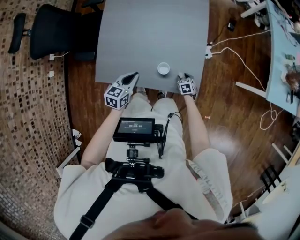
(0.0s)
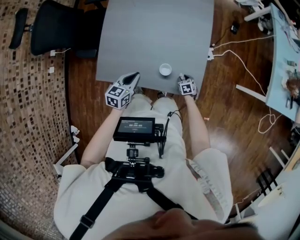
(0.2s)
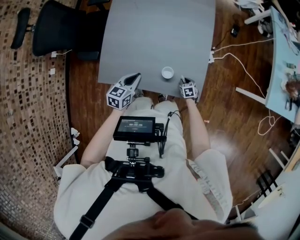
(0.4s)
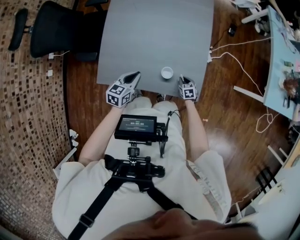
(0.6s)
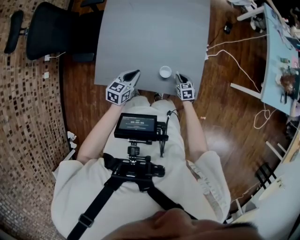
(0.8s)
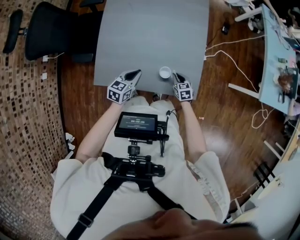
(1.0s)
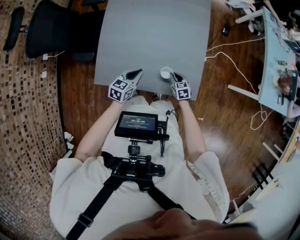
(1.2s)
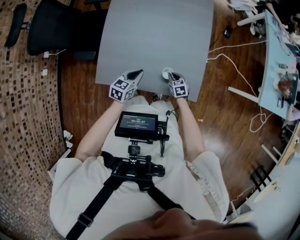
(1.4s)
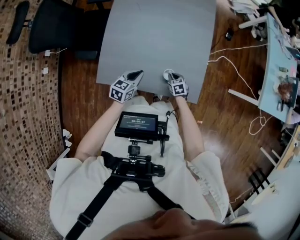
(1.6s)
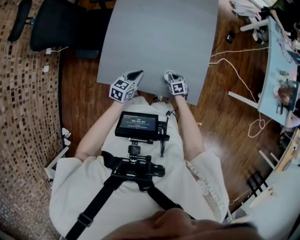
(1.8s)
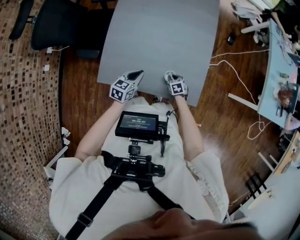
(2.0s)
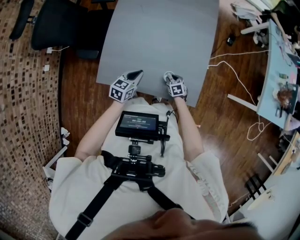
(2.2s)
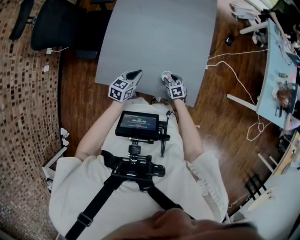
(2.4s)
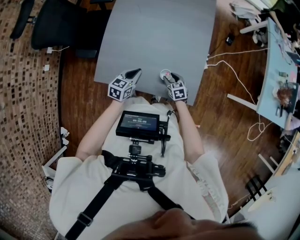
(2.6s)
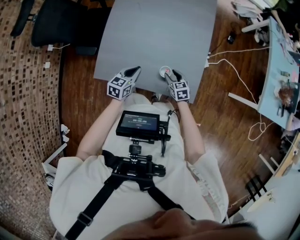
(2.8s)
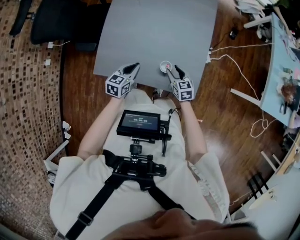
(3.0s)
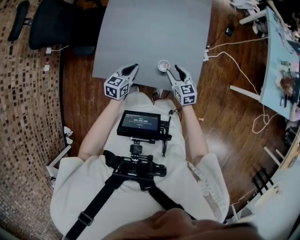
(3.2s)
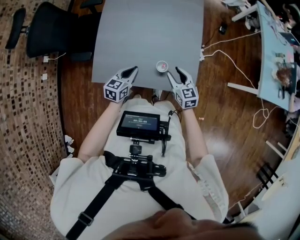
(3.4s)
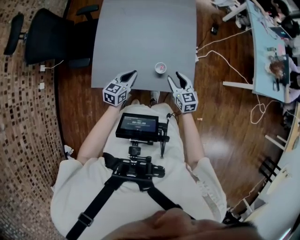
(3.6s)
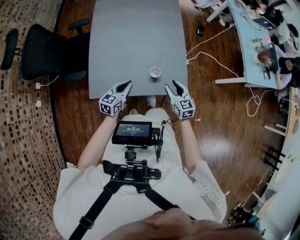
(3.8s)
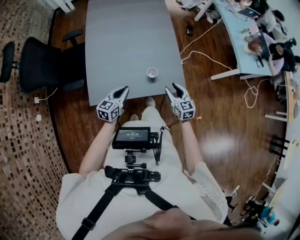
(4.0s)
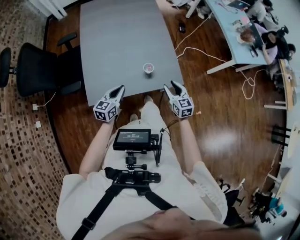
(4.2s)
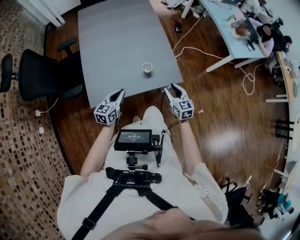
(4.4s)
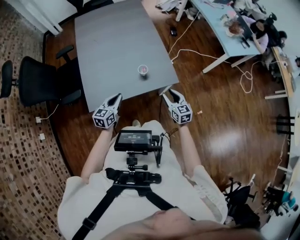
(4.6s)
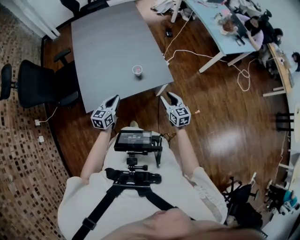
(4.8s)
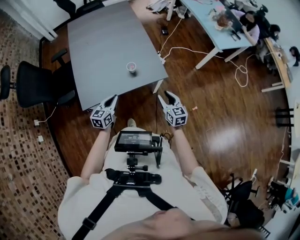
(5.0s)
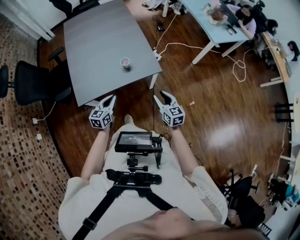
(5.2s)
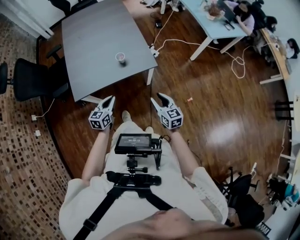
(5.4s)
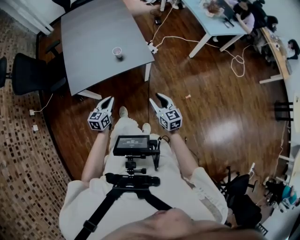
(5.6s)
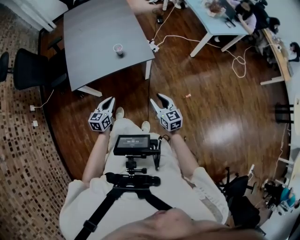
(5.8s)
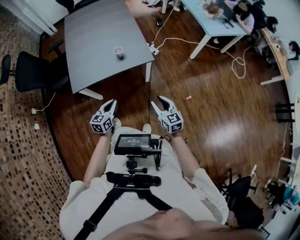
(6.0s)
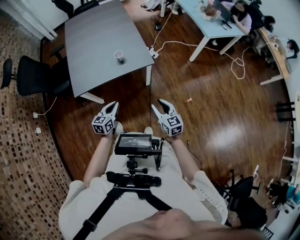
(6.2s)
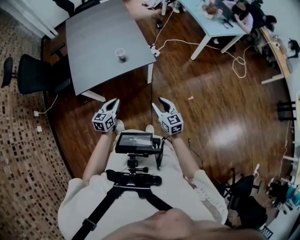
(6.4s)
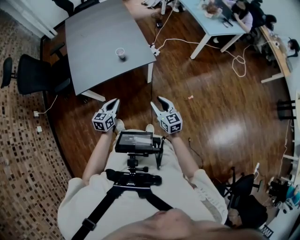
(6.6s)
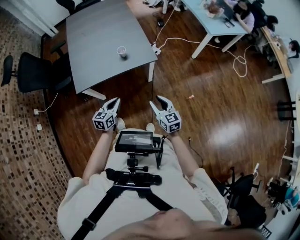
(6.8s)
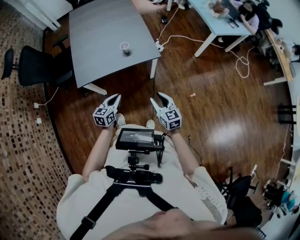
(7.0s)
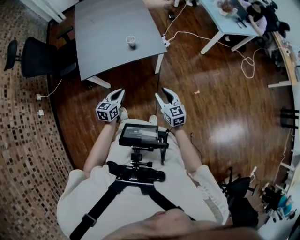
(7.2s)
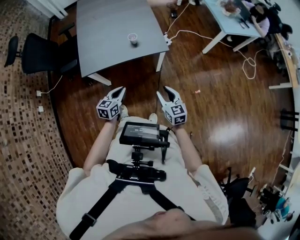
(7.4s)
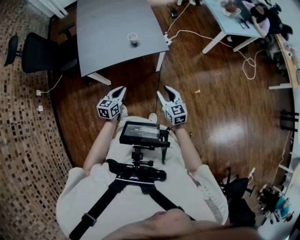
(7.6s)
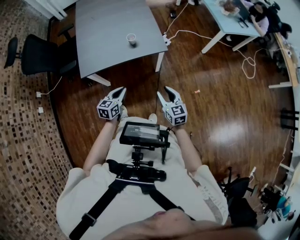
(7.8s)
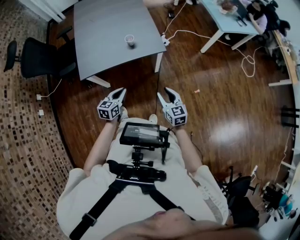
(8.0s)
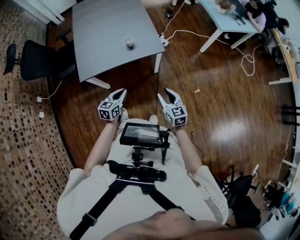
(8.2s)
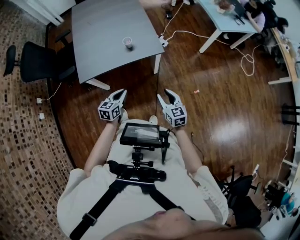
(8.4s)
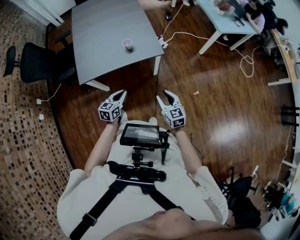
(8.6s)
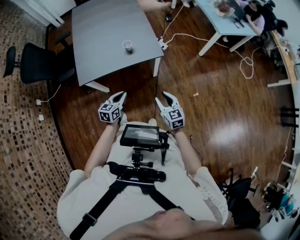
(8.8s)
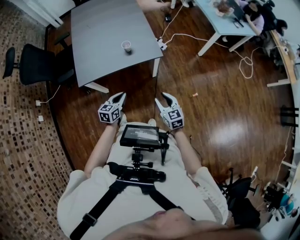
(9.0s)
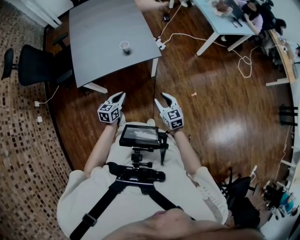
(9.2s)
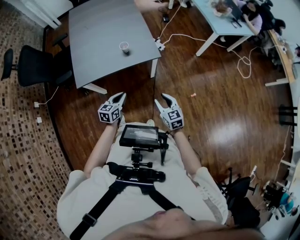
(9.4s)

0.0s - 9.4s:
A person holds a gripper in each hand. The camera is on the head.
0.0s - 1.6s: The right gripper travels to the left and upward by roughly 15 cm, and closes its fingers, while the left gripper moves approximately 5 cm.
1.6s - 3.2s: The right gripper shifts approximately 20 cm upward, changes its angle by roughly 30 degrees, and opens up.
3.2s - 4.8s: The left gripper travels backward by about 15 cm, and changes its angle by about 20 degrees. Meanwhile the right gripper goes roughly 25 cm backward and to the right, and rotates about 30 degrees.
4.8s - 6.2s: Both grippers travel together backward and to the right, some 25 cm.
6.2s - 9.4s: There are only small adjustments of the grippers.

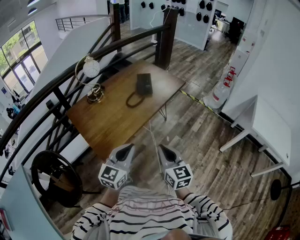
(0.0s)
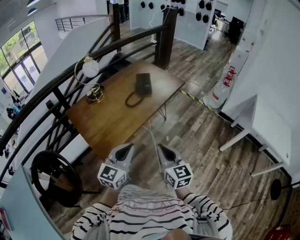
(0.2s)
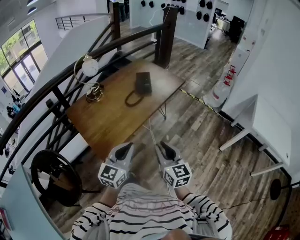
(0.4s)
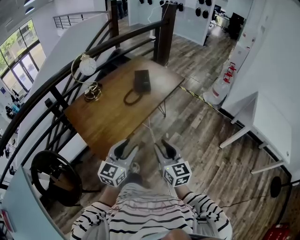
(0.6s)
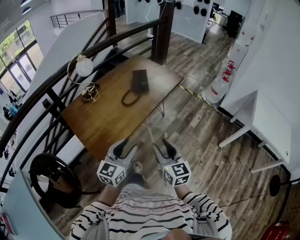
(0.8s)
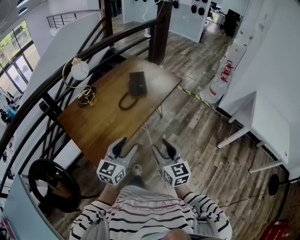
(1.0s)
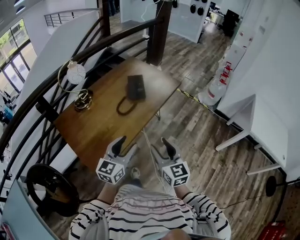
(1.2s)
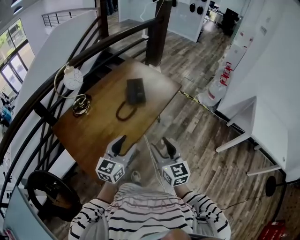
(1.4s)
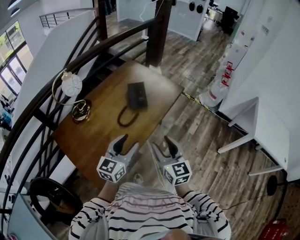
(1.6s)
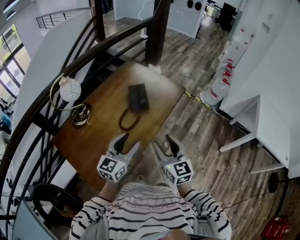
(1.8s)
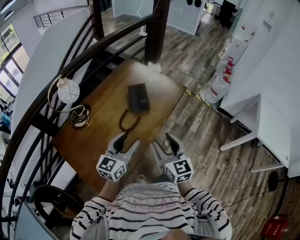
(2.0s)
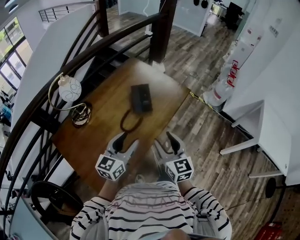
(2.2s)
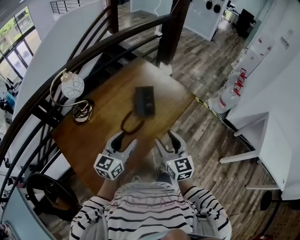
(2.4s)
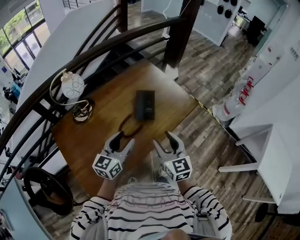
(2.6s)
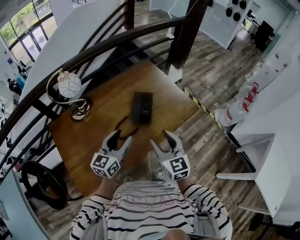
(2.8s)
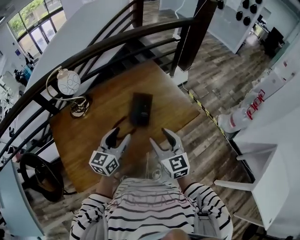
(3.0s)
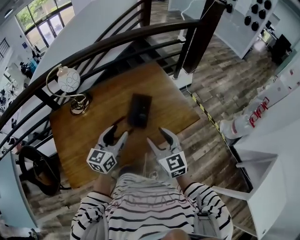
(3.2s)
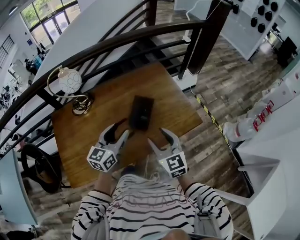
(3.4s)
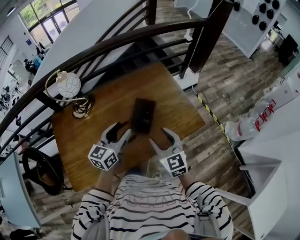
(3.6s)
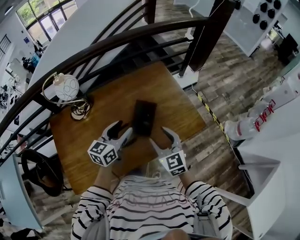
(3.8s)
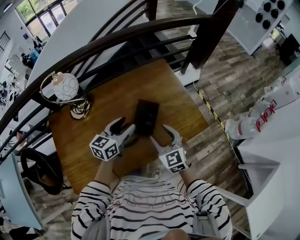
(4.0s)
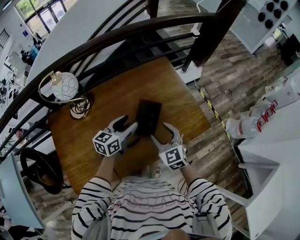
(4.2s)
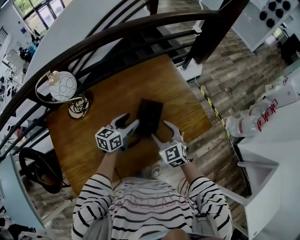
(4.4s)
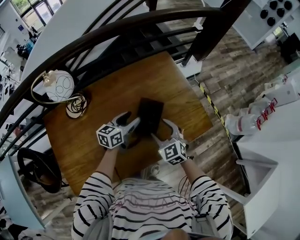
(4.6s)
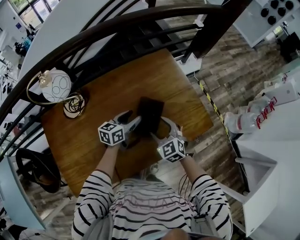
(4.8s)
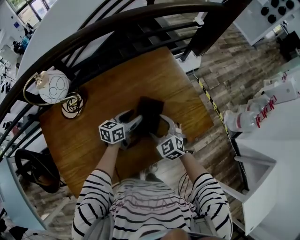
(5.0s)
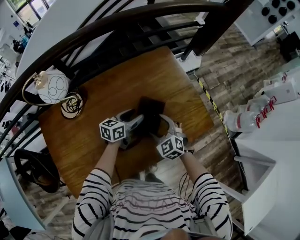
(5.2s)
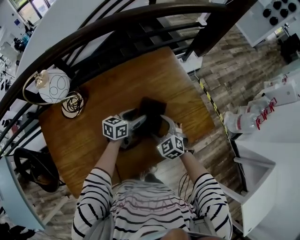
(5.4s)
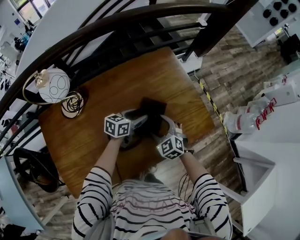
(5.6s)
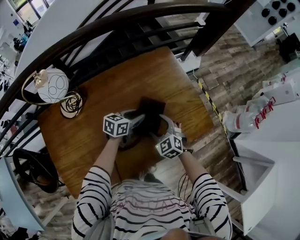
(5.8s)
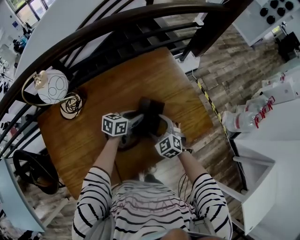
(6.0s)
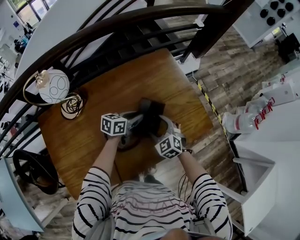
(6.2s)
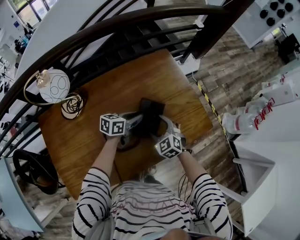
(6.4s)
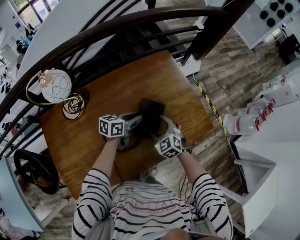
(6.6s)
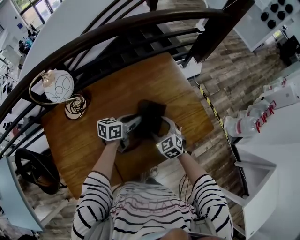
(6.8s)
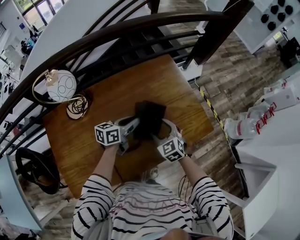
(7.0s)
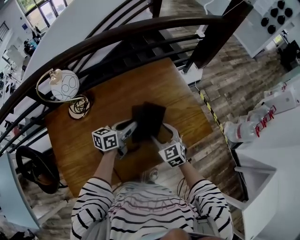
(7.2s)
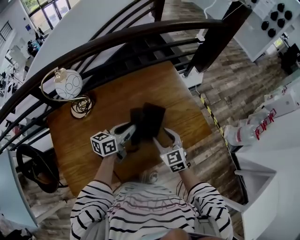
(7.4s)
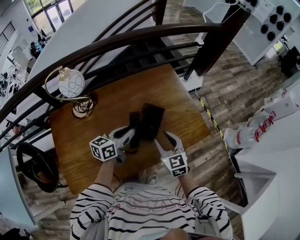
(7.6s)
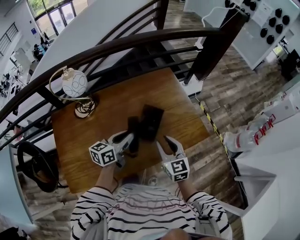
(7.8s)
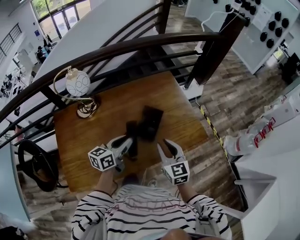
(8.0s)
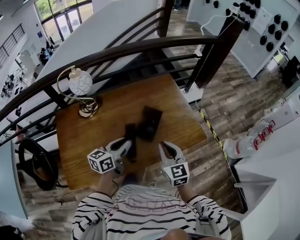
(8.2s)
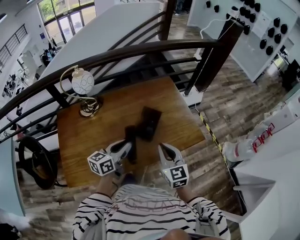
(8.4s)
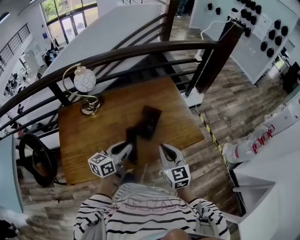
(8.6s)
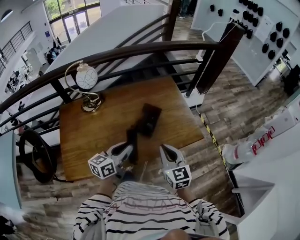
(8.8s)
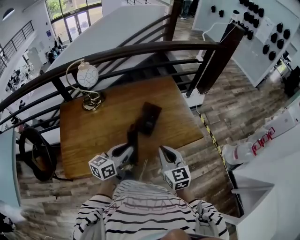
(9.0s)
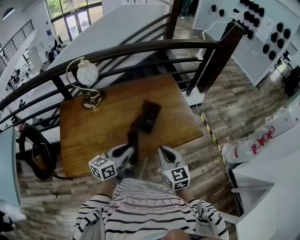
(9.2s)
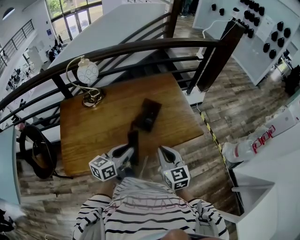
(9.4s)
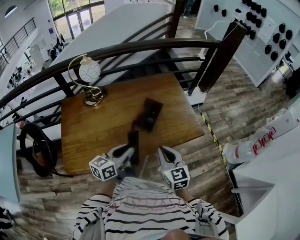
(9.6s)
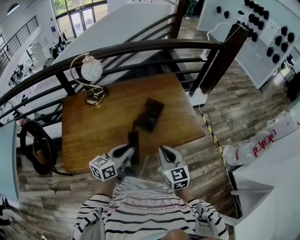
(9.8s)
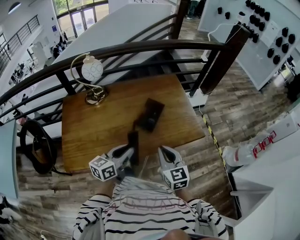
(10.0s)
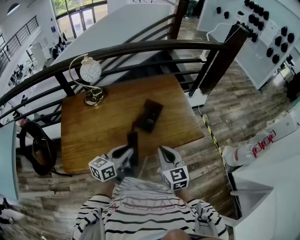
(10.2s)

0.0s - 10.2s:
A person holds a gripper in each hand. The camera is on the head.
0.0s - 1.4s: The grippers both shift forward by approximately 20 cm. The right gripper opens. Meanwhile the left gripper opens its fingers.
1.4s - 3.0s: The left gripper shifts by some 30 cm, and changes its angle by about 20 degrees, while the right gripper changes place by approximately 35 cm, and swivels about 20 degrees.
3.0s - 4.4s: Both grippers travel together forward and downward, roughly 25 cm. The right gripper swivels some 20 degrees.
4.4s - 5.8s: The right gripper travels downward by about 10 cm. Meanwhile the left gripper moves downward and forward, approximately 10 cm, and closes up.
5.8s - 7.2s: The left gripper shifts roughly 10 cm upward and backward. Meanwhile the right gripper is displaced upward by about 5 cm.
7.2s - 8.8s: The left gripper goes about 25 cm backward and upward. The right gripper shifts about 25 cm backward, upward and to the right, changes its angle by roughly 20 degrees, and closes its fingers.
8.8s - 10.2s: The left gripper ends up approximately 5 cm from where it was.

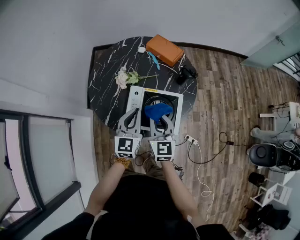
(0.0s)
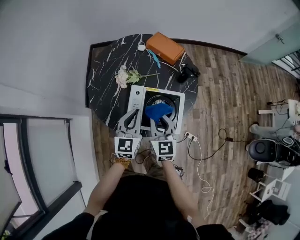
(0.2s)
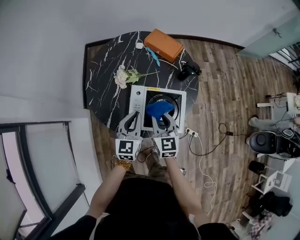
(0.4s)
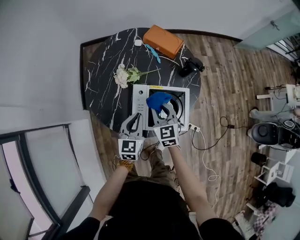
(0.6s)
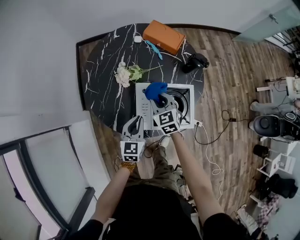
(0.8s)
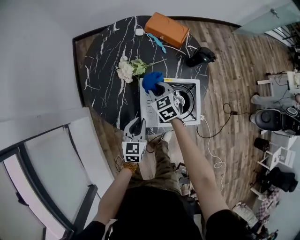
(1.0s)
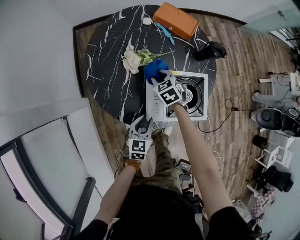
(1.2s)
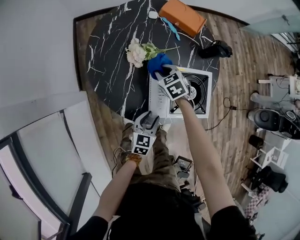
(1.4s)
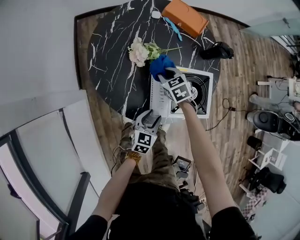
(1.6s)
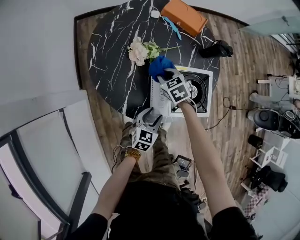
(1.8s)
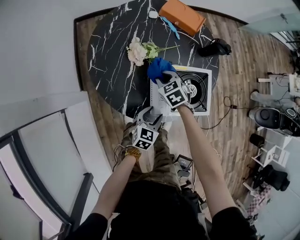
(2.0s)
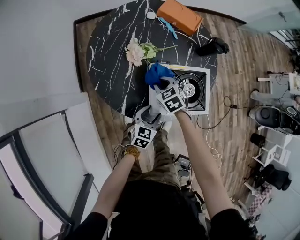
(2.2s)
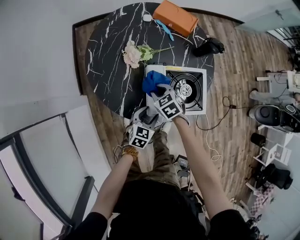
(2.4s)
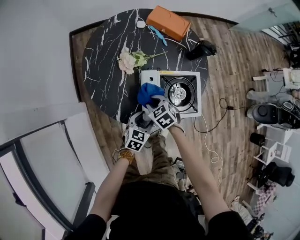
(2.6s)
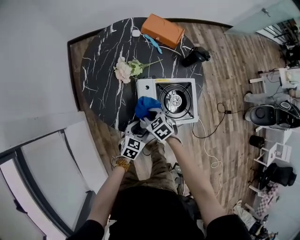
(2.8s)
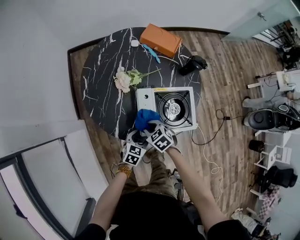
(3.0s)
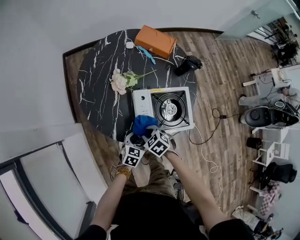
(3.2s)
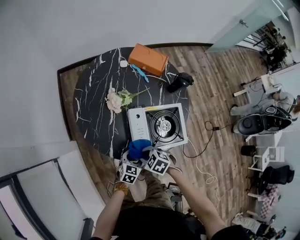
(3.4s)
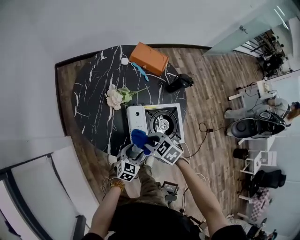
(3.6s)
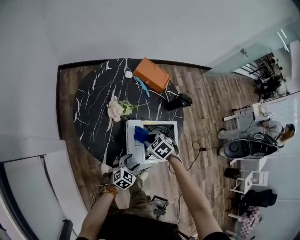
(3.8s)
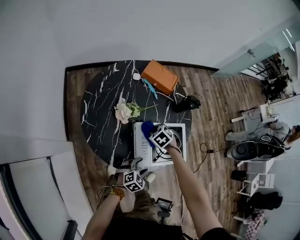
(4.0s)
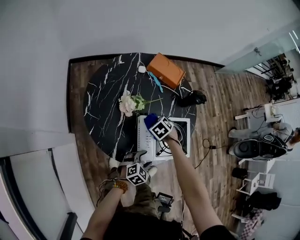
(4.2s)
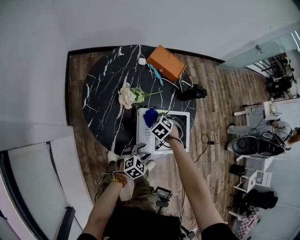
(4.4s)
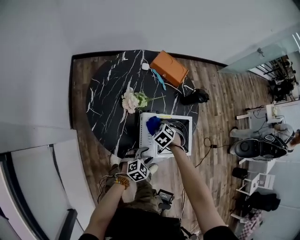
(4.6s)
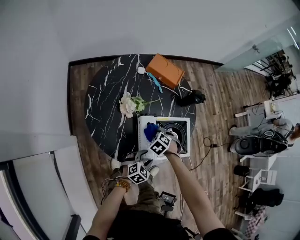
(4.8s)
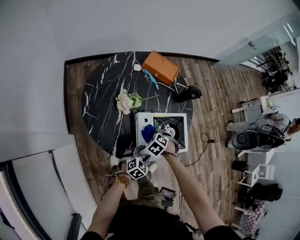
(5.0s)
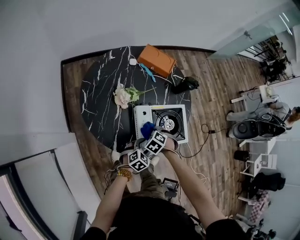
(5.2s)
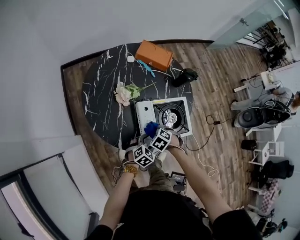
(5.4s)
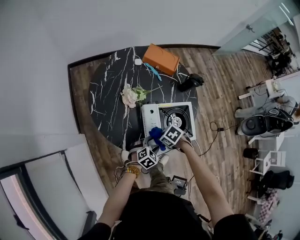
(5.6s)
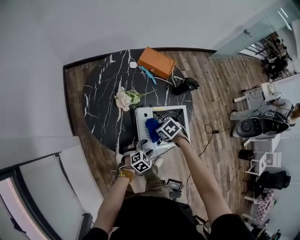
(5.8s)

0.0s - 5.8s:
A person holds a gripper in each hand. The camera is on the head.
0.0s - 1.4s: The left gripper shifts some 25 cm downward, changes its angle by roughly 30 degrees, and opens. Meanwhile the right gripper is displaced downward, forward and to the left by some 30 cm, and points its fingers roughly 40 degrees further downward.
1.4s - 2.8s: The right gripper travels backward by roughly 15 cm.
2.8s - 4.4s: The right gripper travels upward and back again, some 10 cm each way, and rotates some 30 degrees.
4.4s - 5.8s: The right gripper swivels approximately 30 degrees.
